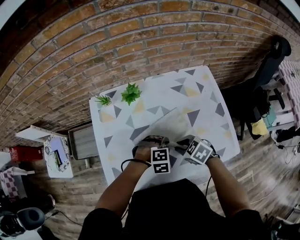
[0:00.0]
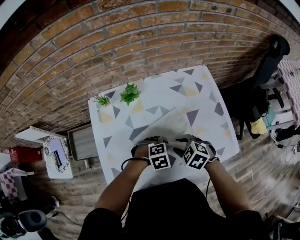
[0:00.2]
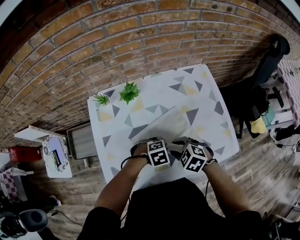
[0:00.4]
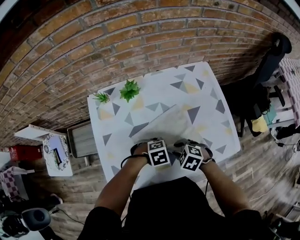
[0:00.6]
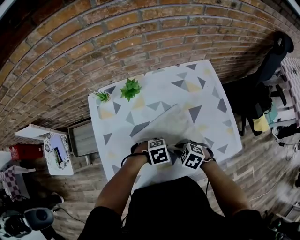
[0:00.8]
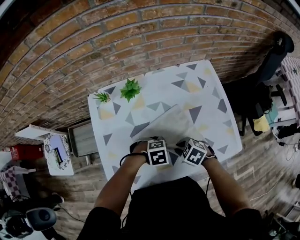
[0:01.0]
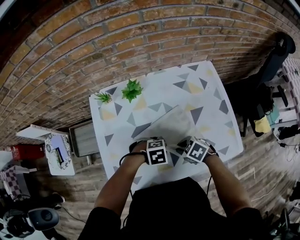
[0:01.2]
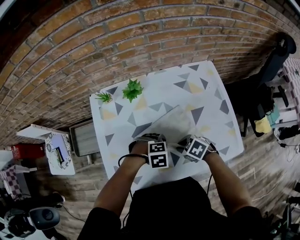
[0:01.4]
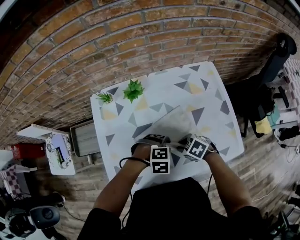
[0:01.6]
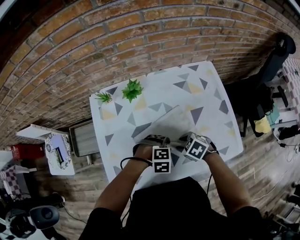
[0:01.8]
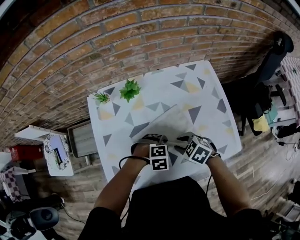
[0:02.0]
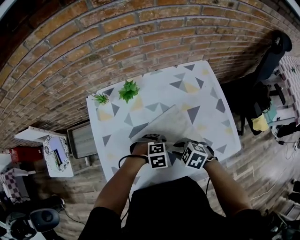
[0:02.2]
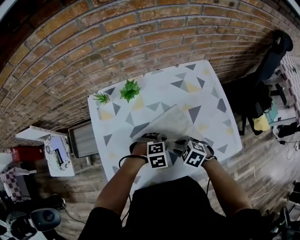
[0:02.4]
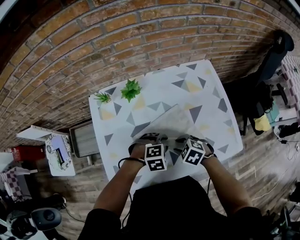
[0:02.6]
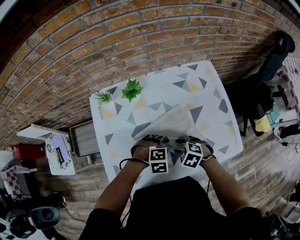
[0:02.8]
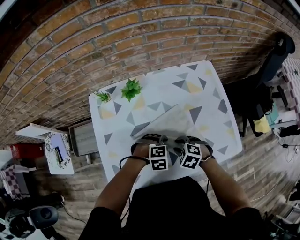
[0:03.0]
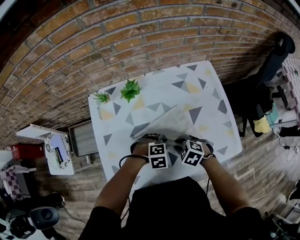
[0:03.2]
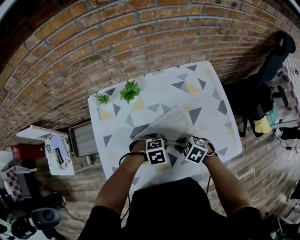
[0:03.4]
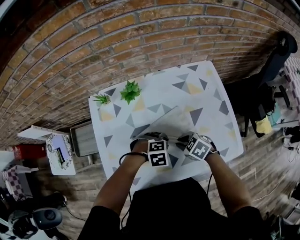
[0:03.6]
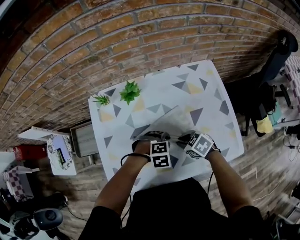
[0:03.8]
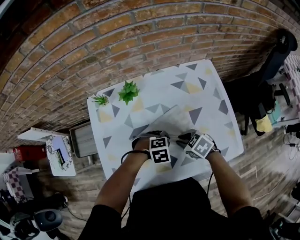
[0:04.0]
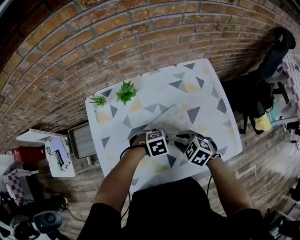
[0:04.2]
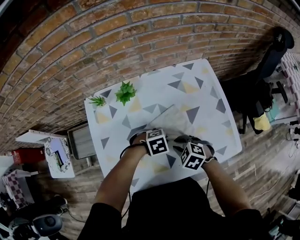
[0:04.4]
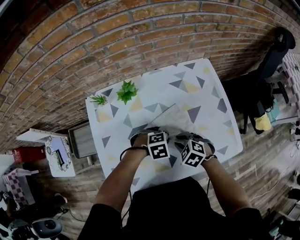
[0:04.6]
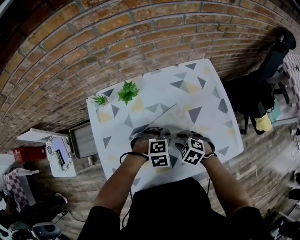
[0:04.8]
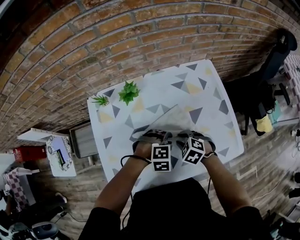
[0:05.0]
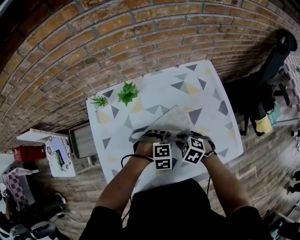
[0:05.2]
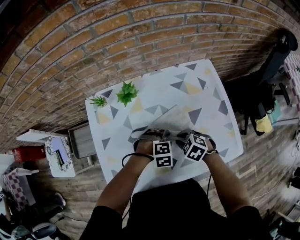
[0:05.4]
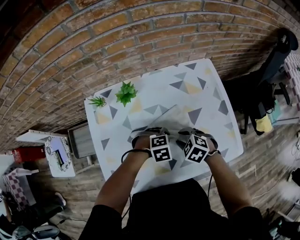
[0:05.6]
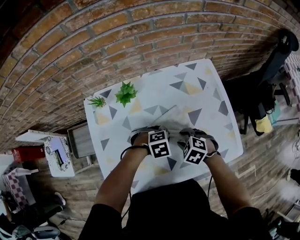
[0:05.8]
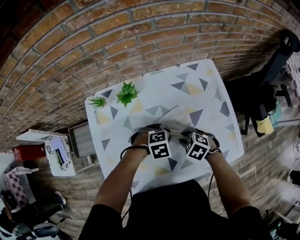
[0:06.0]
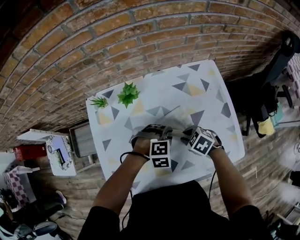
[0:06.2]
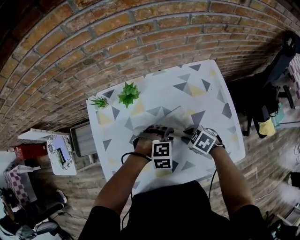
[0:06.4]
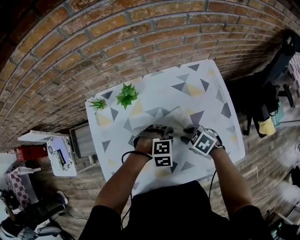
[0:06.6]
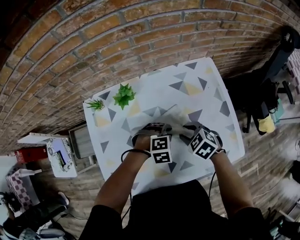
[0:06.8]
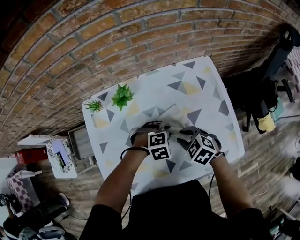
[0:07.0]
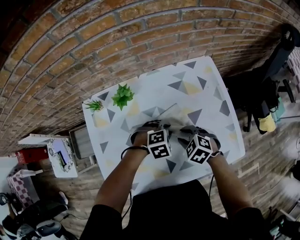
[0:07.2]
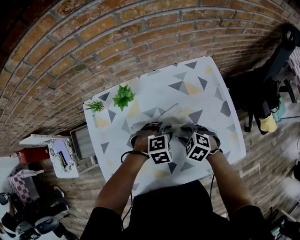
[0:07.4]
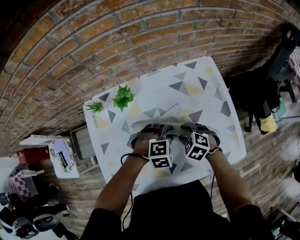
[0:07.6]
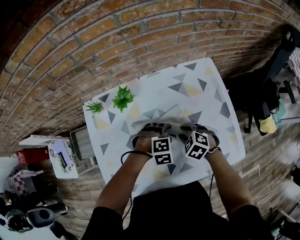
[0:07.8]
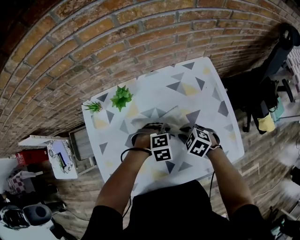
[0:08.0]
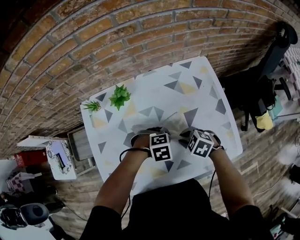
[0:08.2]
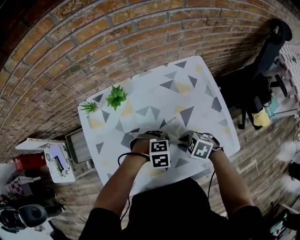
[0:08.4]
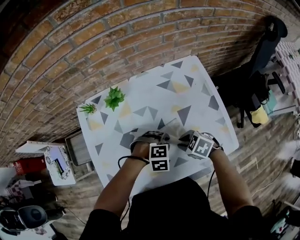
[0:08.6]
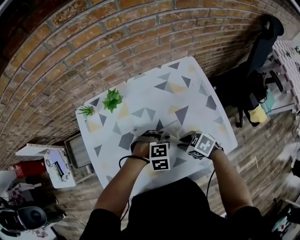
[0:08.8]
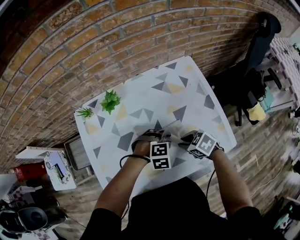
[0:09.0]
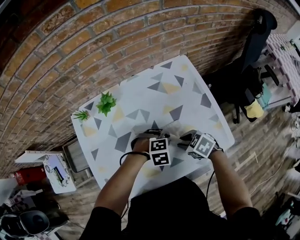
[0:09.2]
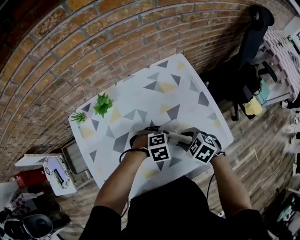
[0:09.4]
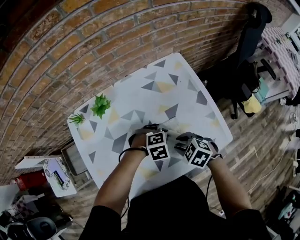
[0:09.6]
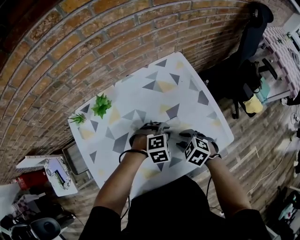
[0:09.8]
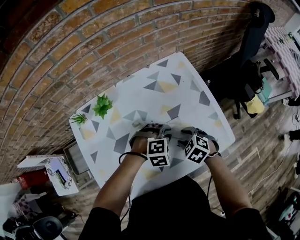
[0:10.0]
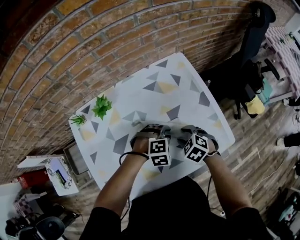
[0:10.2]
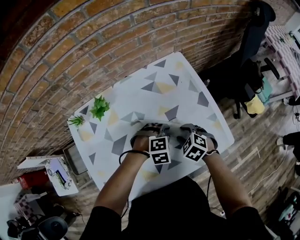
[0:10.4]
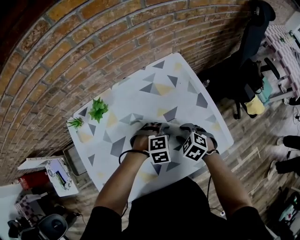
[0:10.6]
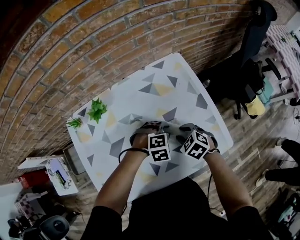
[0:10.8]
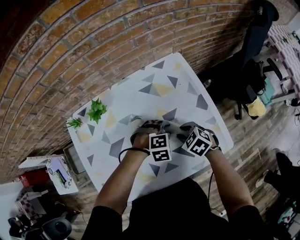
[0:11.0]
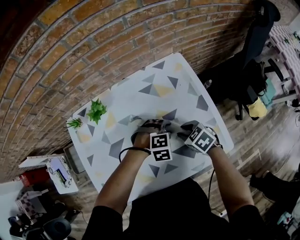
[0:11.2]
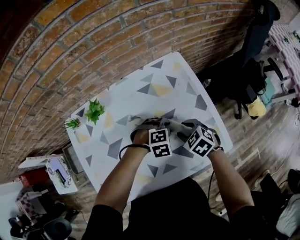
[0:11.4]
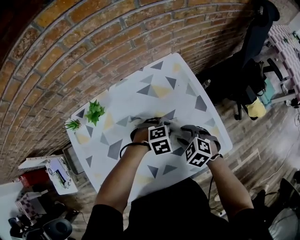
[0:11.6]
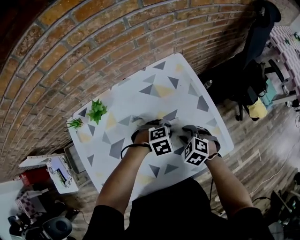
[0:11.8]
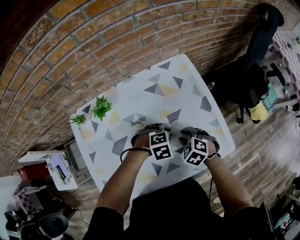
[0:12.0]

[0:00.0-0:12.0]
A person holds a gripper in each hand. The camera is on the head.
0:01.6 to 0:03.0: The right gripper swivels approximately 20 degrees.
0:04.4 to 0:06.0: The right gripper shifts by roughly 5 cm.
0:06.0 to 0:07.6: The grippers stay close to where they were, moving slightly.
0:07.6 to 0:09.0: The right gripper ends up some 10 cm from where it was, and changes its angle by roughly 30 degrees, while the left gripper changes place by some 5 cm.
0:09.0 to 0:10.4: The right gripper shifts by about 5 cm, and swivels approximately 30 degrees.
0:10.4 to 0:12.0: The grippers move only a little.

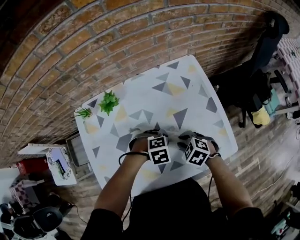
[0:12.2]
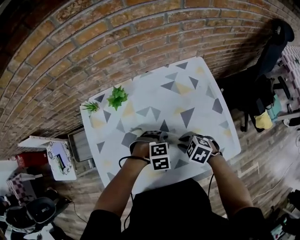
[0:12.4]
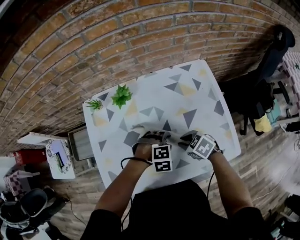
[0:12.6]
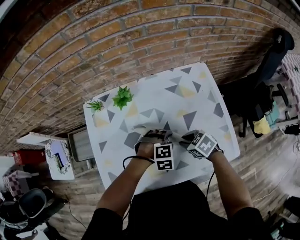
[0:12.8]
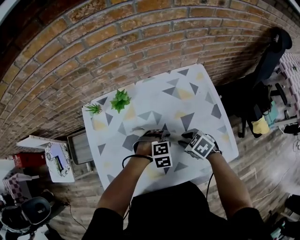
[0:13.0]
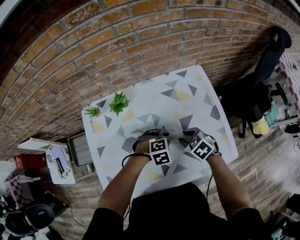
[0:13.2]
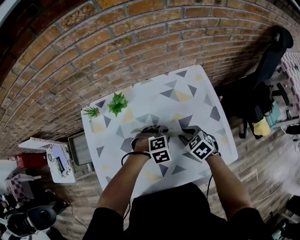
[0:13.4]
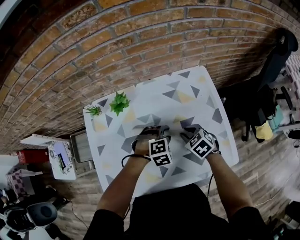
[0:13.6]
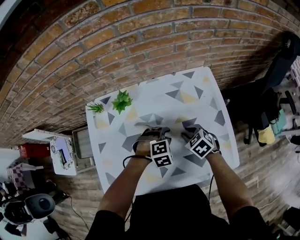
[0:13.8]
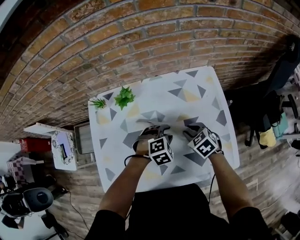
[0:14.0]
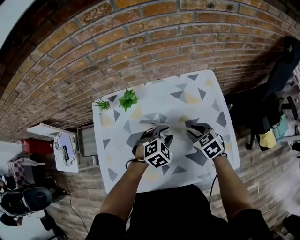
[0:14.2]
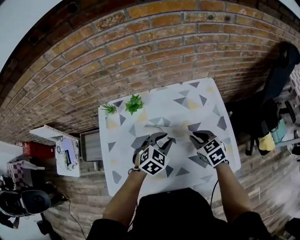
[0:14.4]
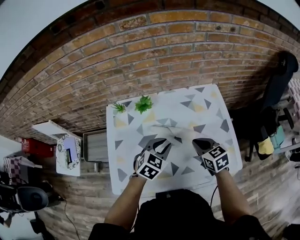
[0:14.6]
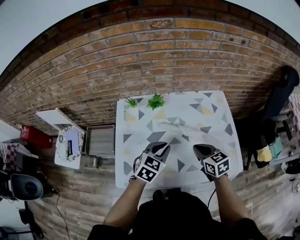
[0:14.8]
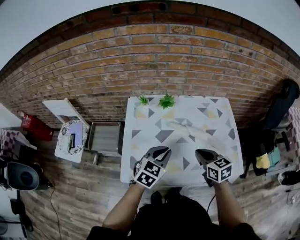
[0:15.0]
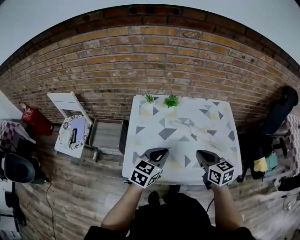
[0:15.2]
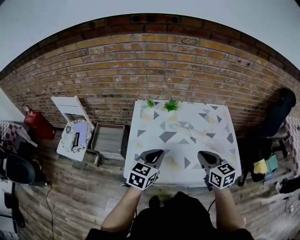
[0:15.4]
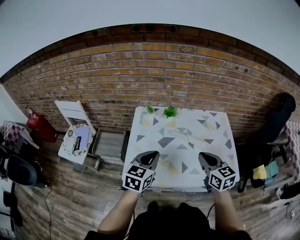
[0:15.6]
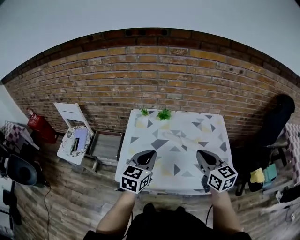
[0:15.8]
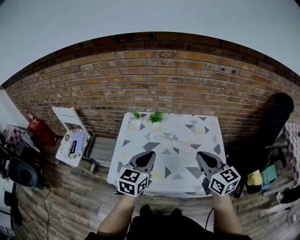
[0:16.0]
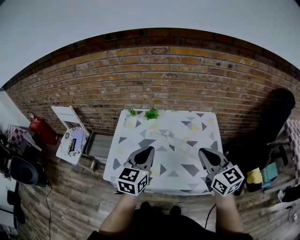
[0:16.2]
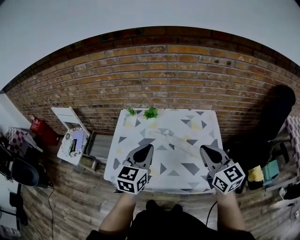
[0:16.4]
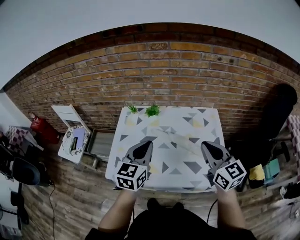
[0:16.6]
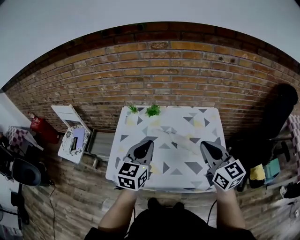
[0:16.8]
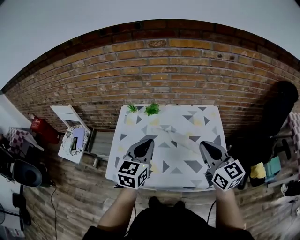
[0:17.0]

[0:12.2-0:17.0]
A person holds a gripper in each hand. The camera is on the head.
0:12.2 to 0:13.8: The left gripper moves roughly 5 cm; the right gripper moves approximately 10 cm.
0:13.8 to 0:15.4: The left gripper shifts approximately 35 cm to the left, upward and backward, tilts its fingers roughly 40 degrees upward, and closes its fingers, while the right gripper moves upward, backward and to the left, some 30 cm, and points its fingers about 30 degrees further upward.
0:15.4 to 0:17.0: The two grippers go approximately 15 cm to the right and upward. The right gripper turns by approximately 20 degrees.

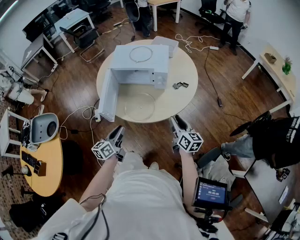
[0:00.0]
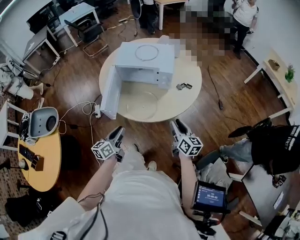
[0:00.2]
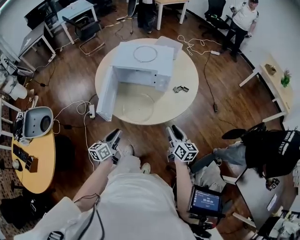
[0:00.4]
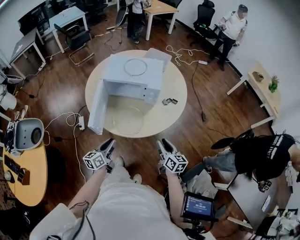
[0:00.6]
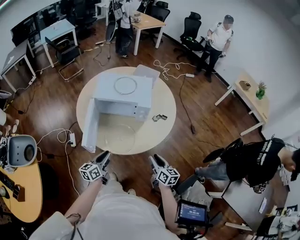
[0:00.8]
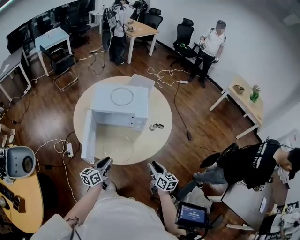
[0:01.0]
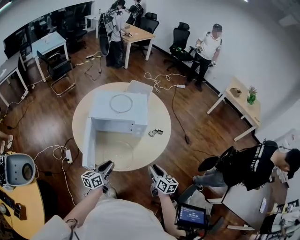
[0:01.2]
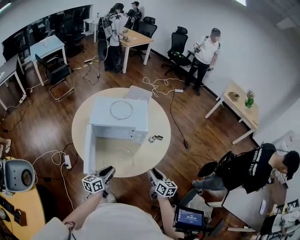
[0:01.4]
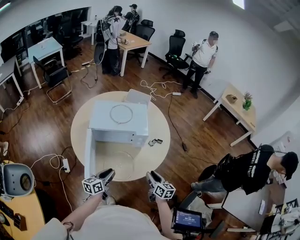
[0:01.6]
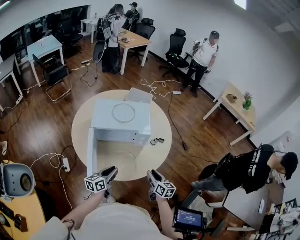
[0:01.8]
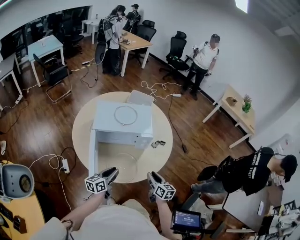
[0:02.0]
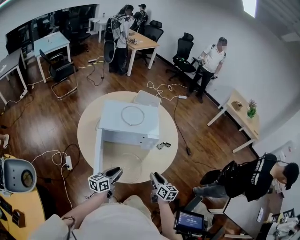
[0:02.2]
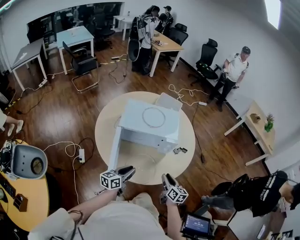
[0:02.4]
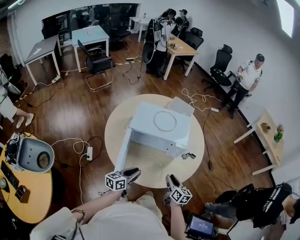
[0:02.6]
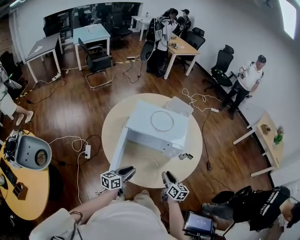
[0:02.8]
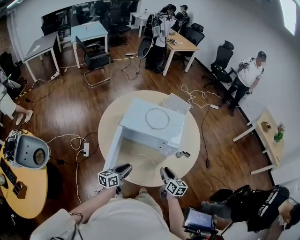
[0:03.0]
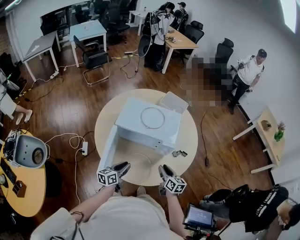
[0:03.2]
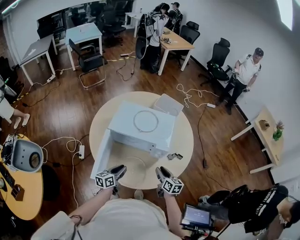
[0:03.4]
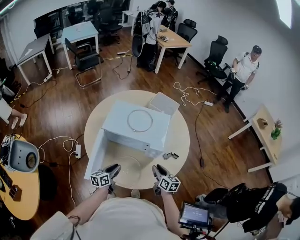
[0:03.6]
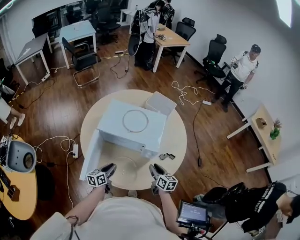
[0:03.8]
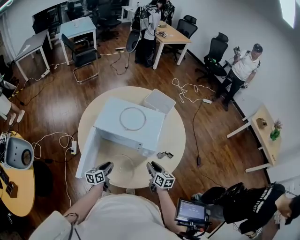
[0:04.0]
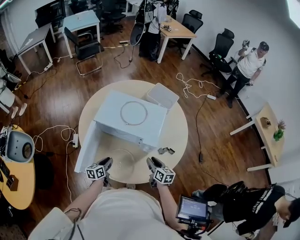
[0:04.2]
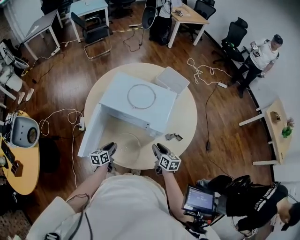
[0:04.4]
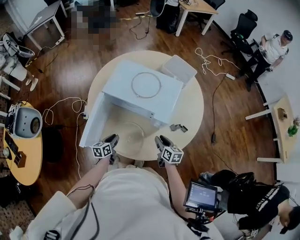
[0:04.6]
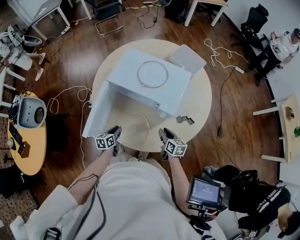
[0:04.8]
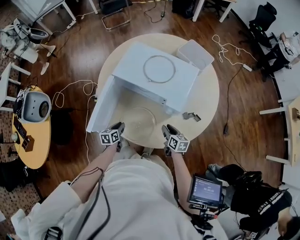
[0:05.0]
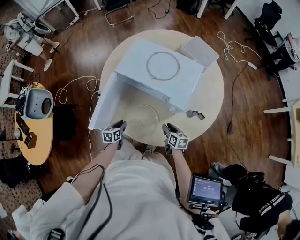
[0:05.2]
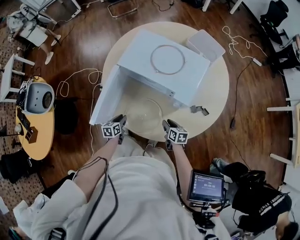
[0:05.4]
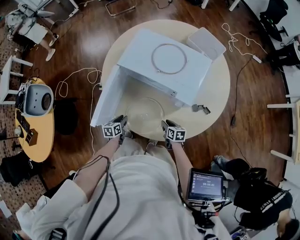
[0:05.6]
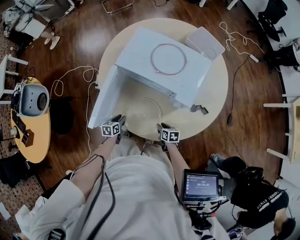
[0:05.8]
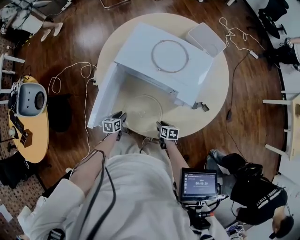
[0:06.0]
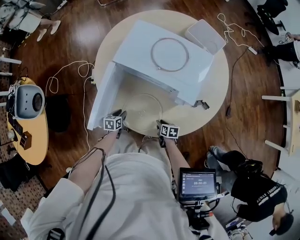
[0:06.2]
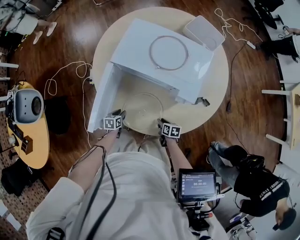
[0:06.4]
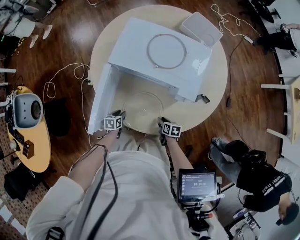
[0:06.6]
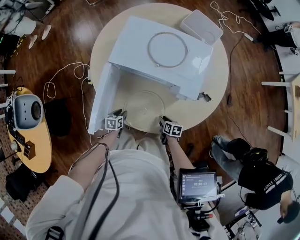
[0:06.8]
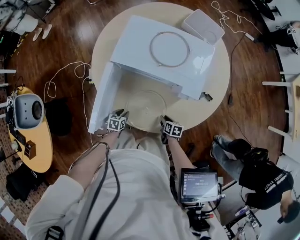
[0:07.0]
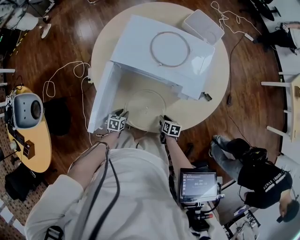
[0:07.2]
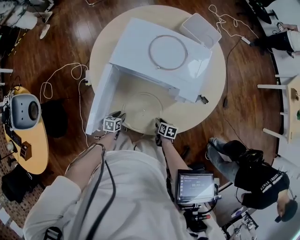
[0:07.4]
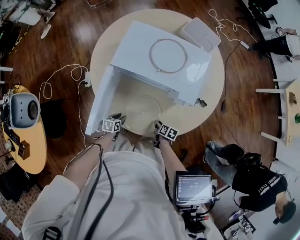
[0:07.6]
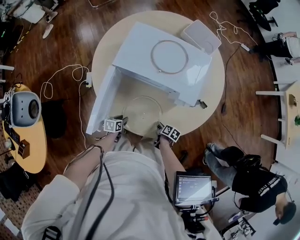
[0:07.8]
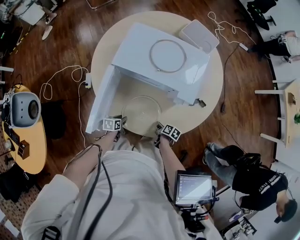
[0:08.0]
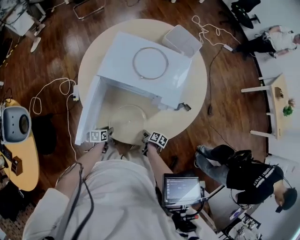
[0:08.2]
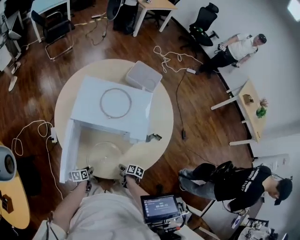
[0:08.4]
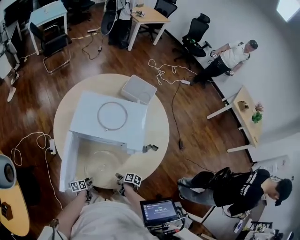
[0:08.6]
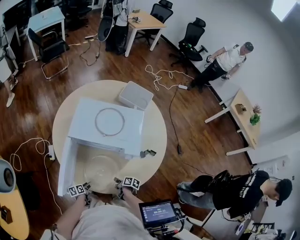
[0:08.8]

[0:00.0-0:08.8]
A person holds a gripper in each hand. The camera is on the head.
0:00.0 to 0:01.4: The left gripper travels forward by about 15 cm, and rotates some 20 degrees. The right gripper travels forward and to the left by roughly 10 cm.
0:01.4 to 0:03.0: The right gripper shifts roughly 15 cm forward and to the left, while the left gripper shifts some 10 cm forward and to the left.
0:03.0 to 0:04.4: The left gripper heads downward and forward, covering some 15 cm, and rotates about 20 degrees. Meanwhile the right gripper heads forward, to the right and downward, covering some 15 cm.
0:04.4 to 0:05.8: The two grippers go some 20 cm downward and to the left. The right gripper changes its angle by some 30 degrees.
0:05.8 to 0:07.4: The right gripper rotates approximately 20 degrees. Meanwhile the left gripper shifts approximately 5 cm downward.
0:07.4 to 0:08.8: The right gripper rotates roughly 30 degrees, and closes up; the left gripper changes its angle by about 30 degrees.
